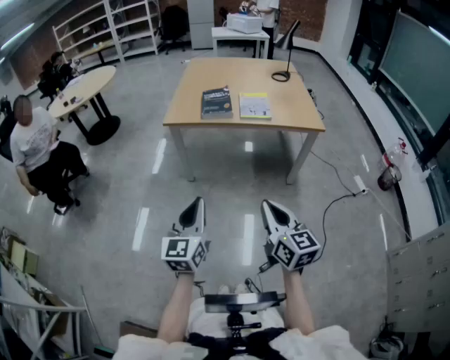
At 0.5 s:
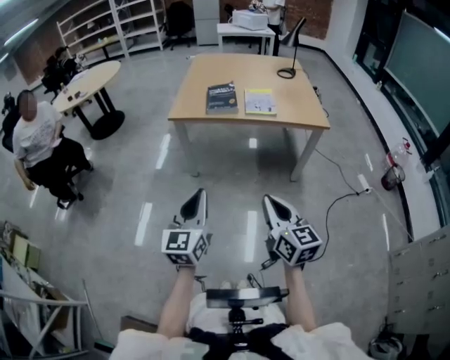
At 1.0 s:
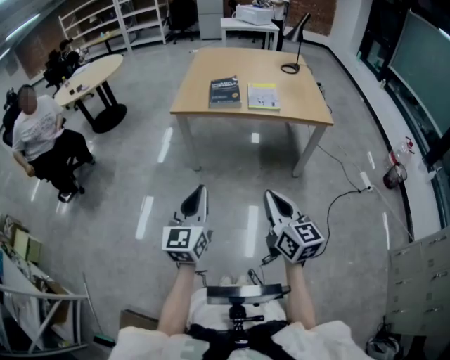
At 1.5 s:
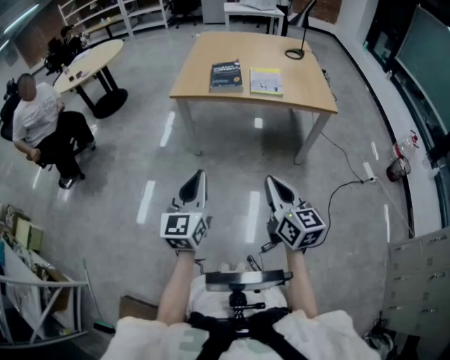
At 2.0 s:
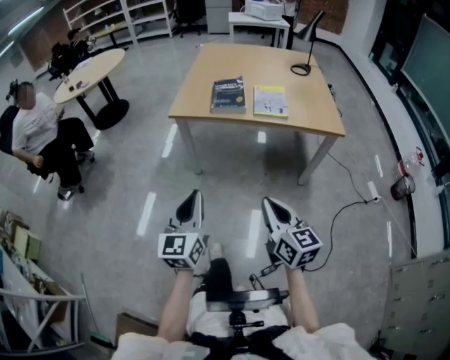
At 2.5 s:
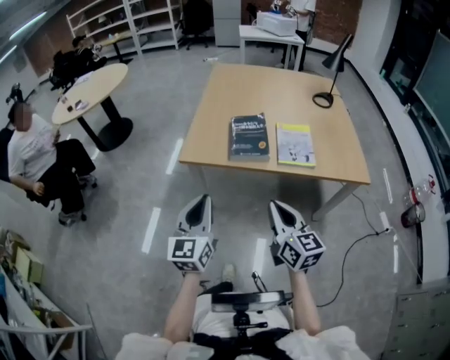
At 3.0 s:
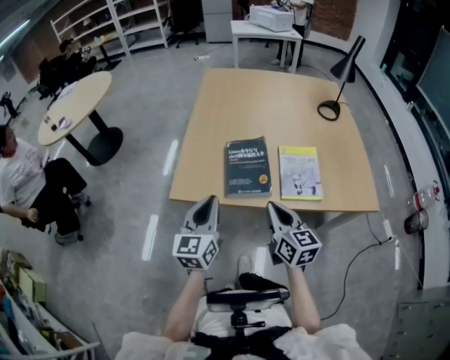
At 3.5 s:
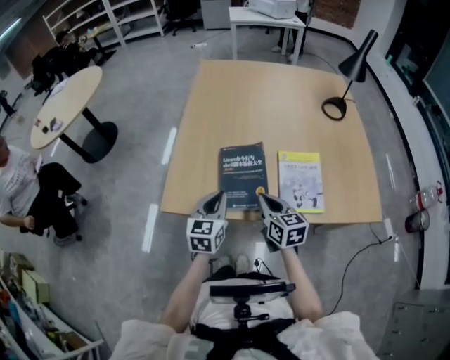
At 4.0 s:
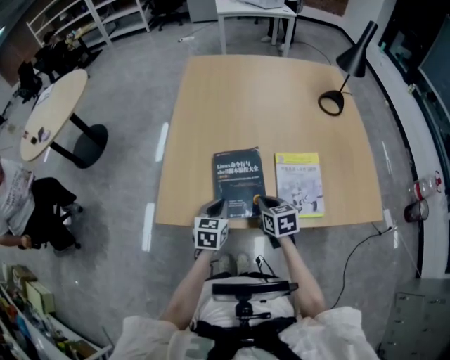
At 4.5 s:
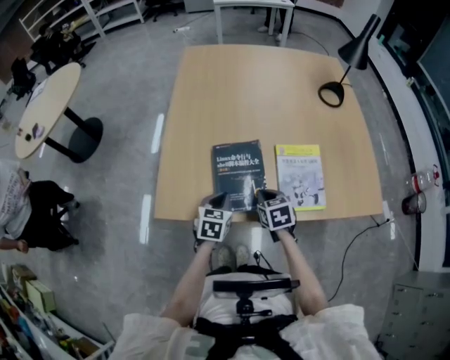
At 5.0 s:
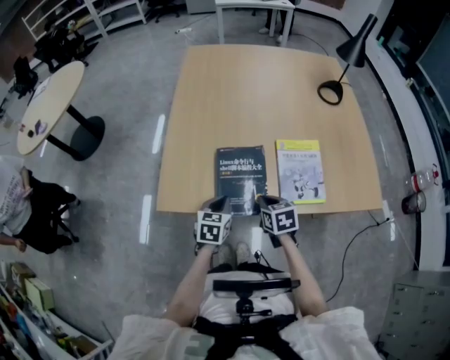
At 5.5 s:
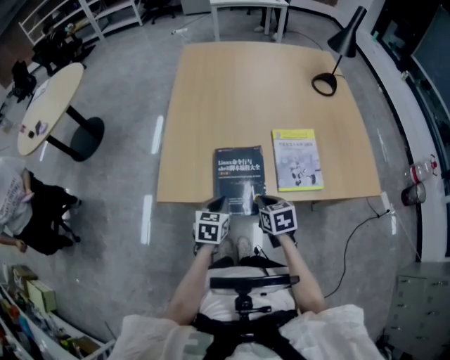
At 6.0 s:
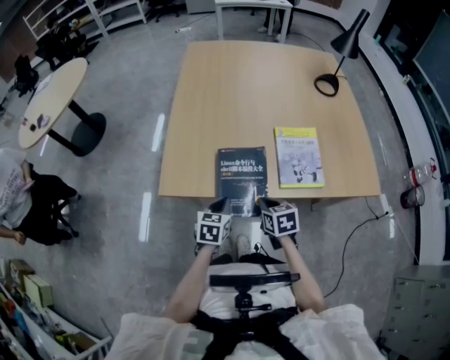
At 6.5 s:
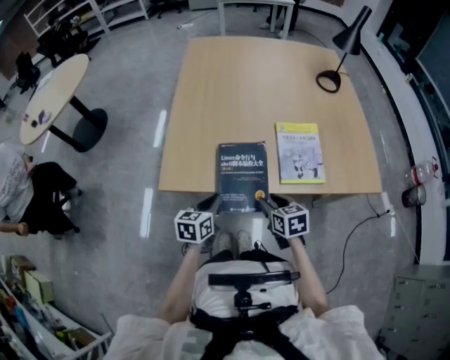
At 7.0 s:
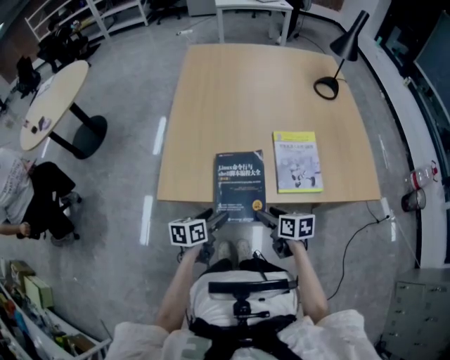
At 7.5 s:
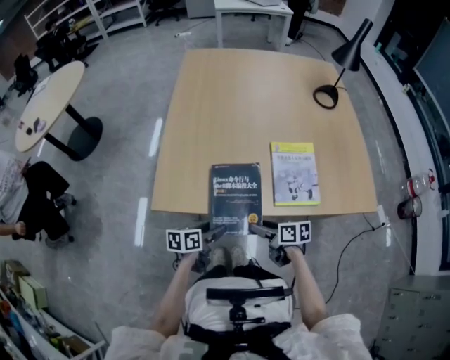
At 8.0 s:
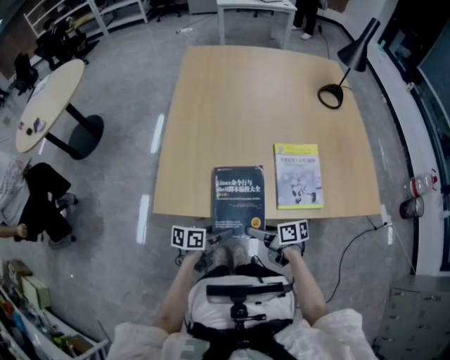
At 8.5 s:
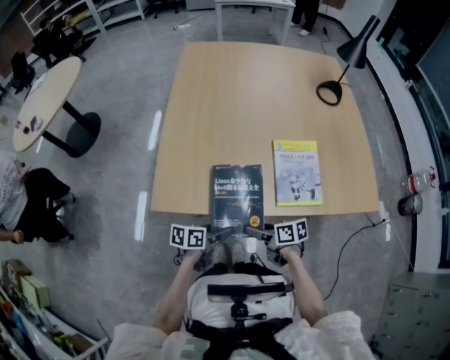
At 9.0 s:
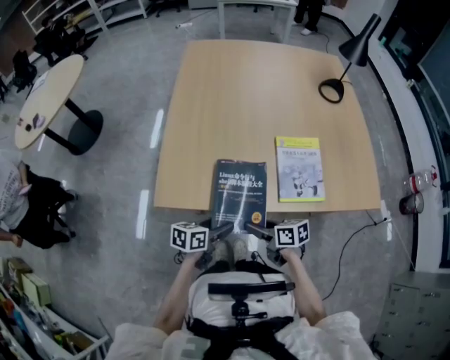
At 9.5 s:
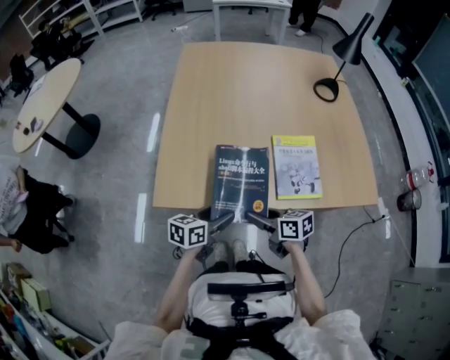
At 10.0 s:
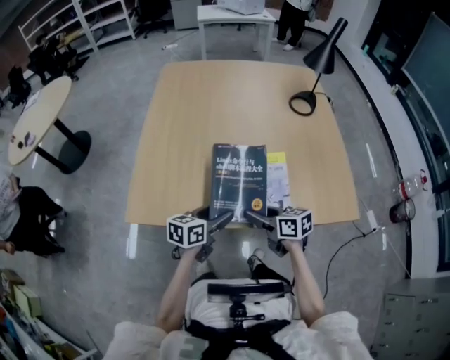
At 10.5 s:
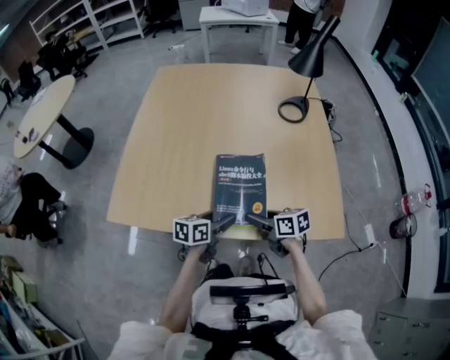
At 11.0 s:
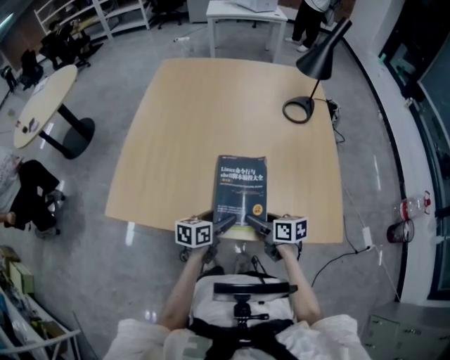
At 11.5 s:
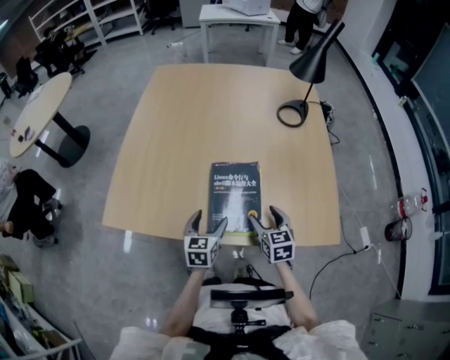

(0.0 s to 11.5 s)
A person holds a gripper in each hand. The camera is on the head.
0.0 s - 2.0 s: Both grippers travel together forward, roughly 10 cm.
2.0 s - 4.0 s: Both grippers are carried forward, roughly 60 cm. The right gripper angles its fingers downward, by approximately 30 degrees; the left gripper tips its fingers downward by roughly 30 degrees.
4.0 s - 6.0 s: Both grippers travel together backward, about 10 cm.
6.0 s - 7.5 s: The right gripper turns by about 40 degrees, and opens its fingers; the left gripper turns by approximately 40 degrees, and opens up.
7.5 s - 9.5 s: The grippers both shift upward by some 5 cm.
9.5 s - 11.5 s: The left gripper travels to the right and forward by some 20 cm, and rotates roughly 40 degrees. The right gripper heads to the right, covering about 30 cm, and changes its angle by roughly 40 degrees.

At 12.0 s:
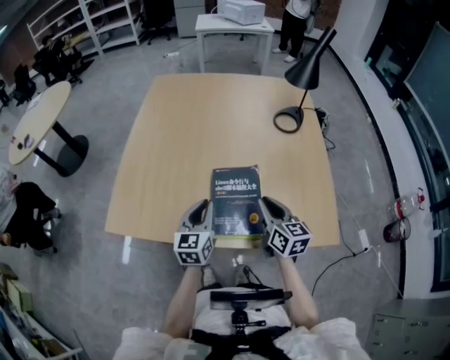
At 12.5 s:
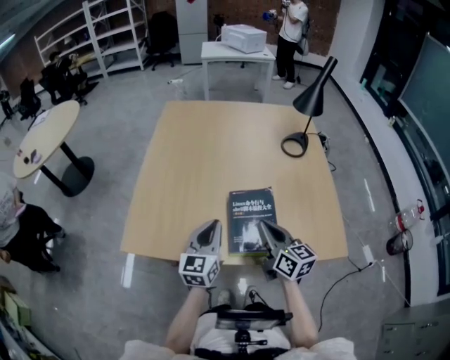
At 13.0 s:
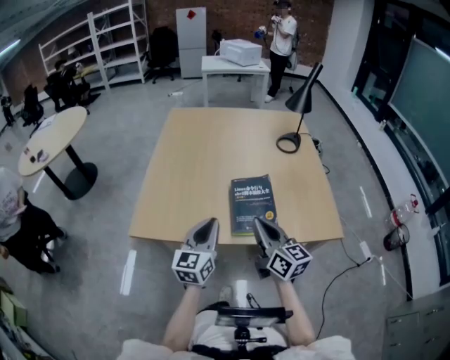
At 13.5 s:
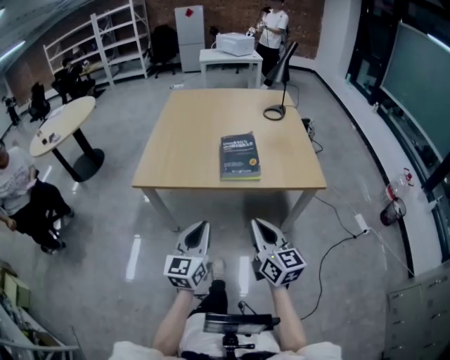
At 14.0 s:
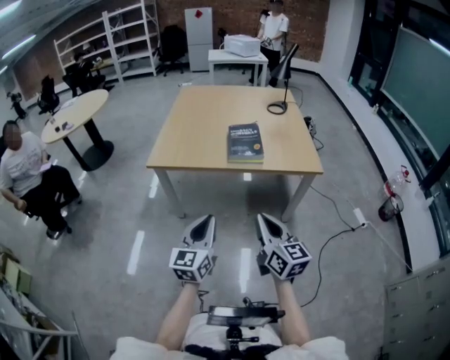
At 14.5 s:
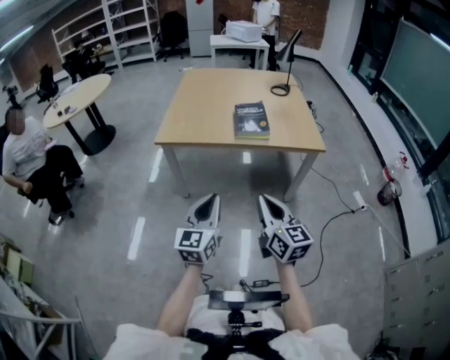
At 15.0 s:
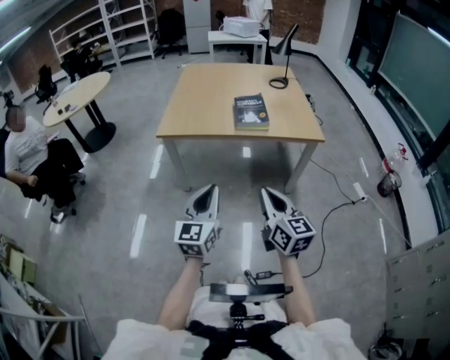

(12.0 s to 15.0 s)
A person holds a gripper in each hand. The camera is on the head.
12.0 s - 13.5 s: Both grippers are carried backward, roughly 40 cm.
13.5 s - 15.0 s: Both grippers move backward, roughly 20 cm.

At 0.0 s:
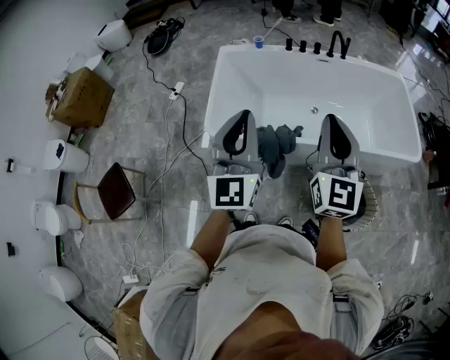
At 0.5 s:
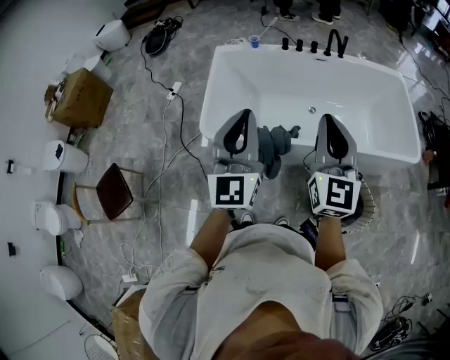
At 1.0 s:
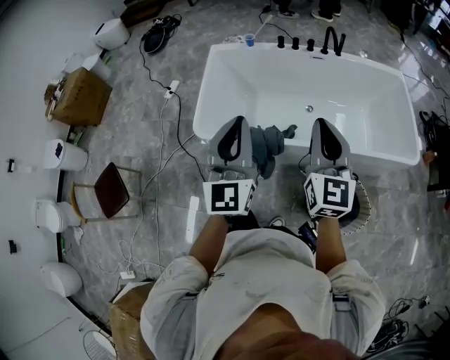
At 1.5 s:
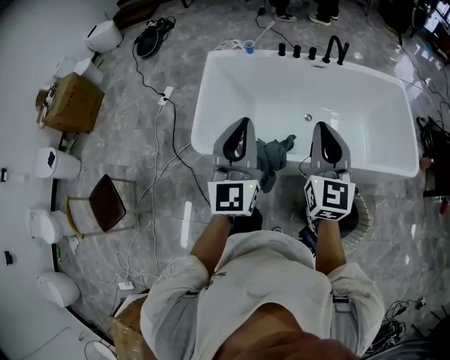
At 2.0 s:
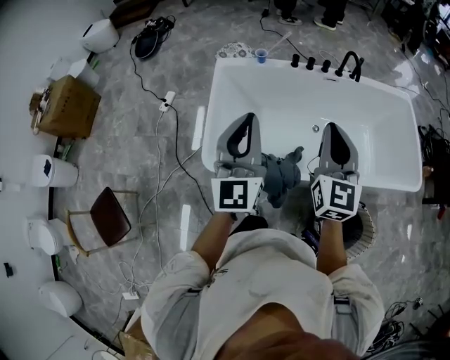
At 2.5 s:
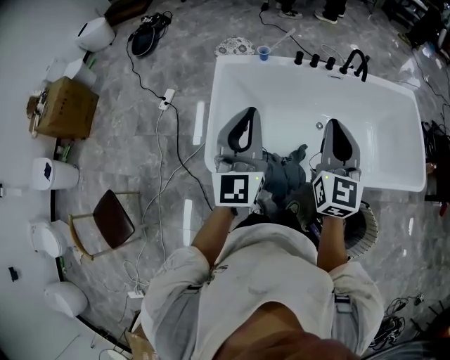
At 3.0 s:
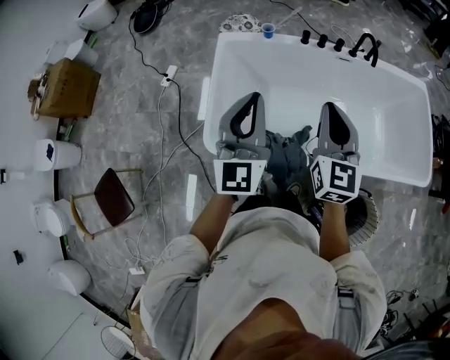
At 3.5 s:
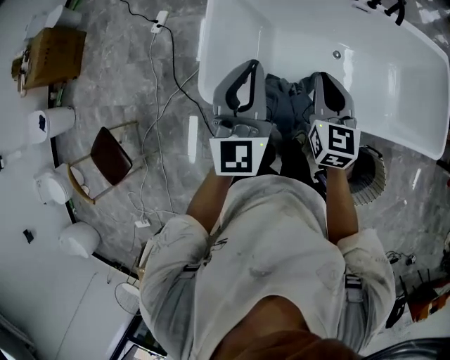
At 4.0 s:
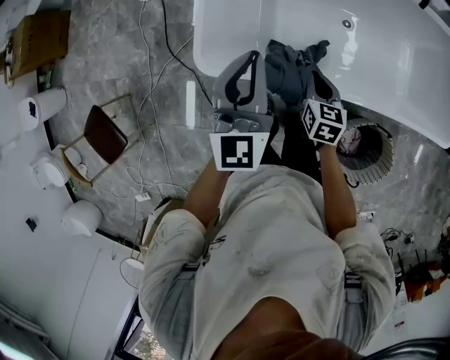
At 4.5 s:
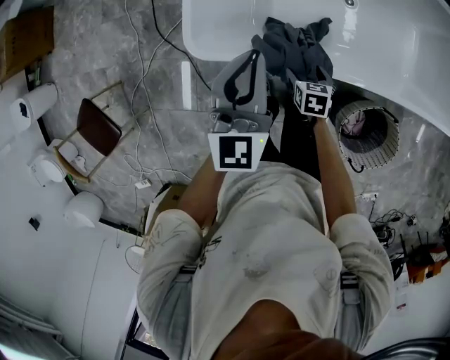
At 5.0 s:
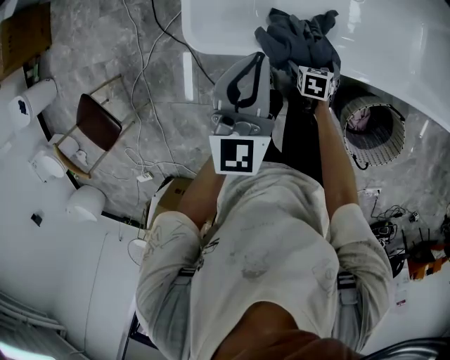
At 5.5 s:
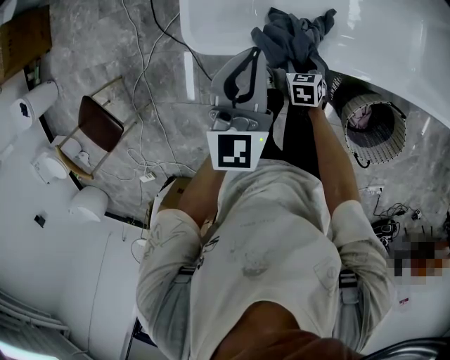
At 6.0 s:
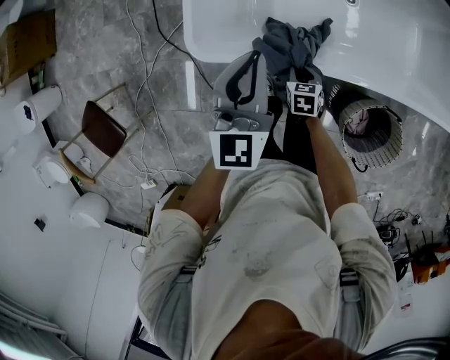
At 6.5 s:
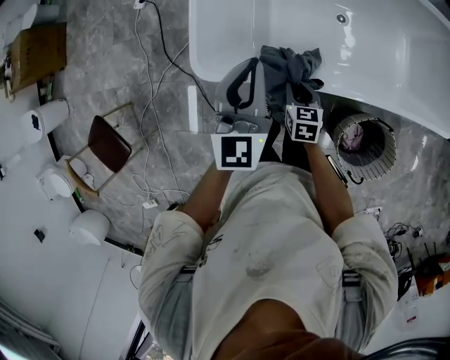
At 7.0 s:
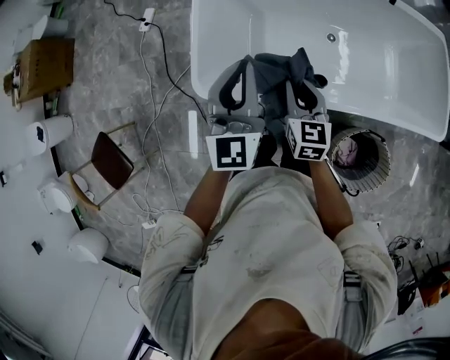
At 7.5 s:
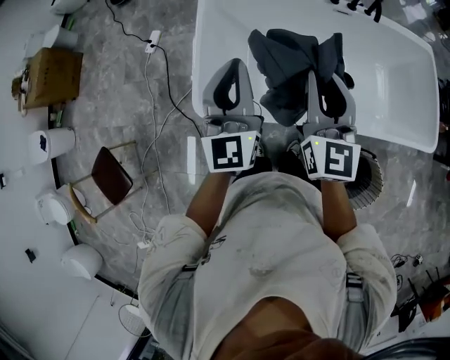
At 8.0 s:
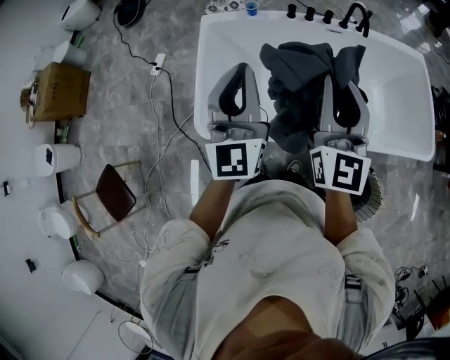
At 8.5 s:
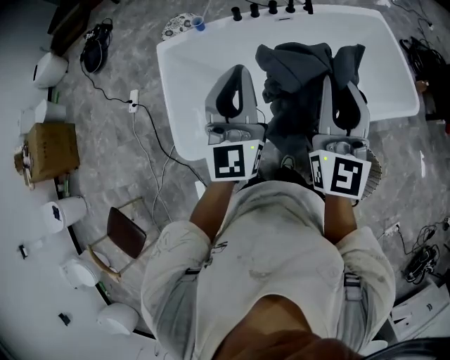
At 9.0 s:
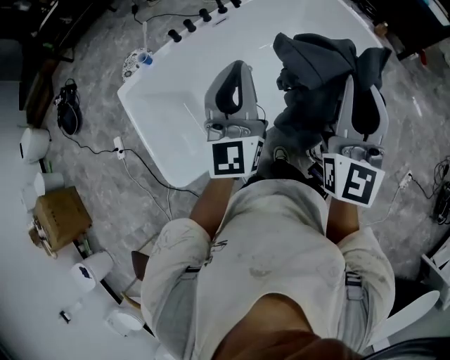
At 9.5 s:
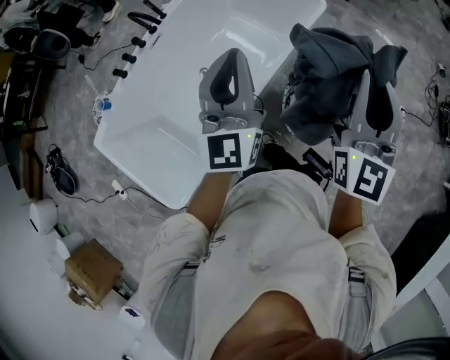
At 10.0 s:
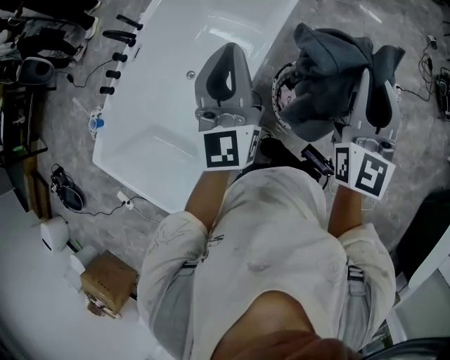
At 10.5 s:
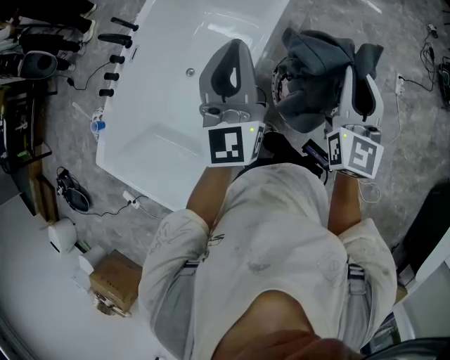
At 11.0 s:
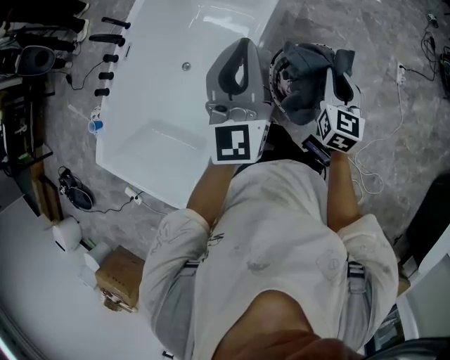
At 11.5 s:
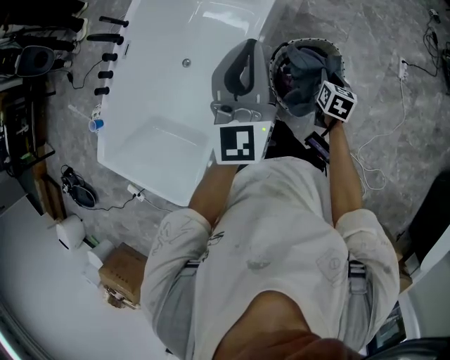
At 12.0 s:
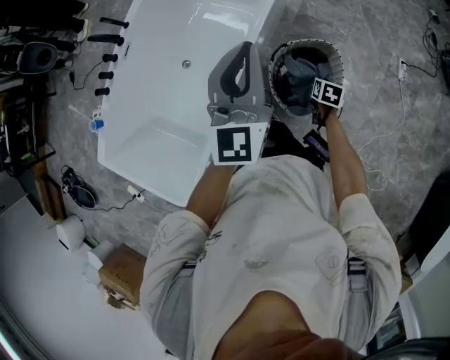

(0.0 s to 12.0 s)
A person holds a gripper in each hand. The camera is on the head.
0.0 s - 2.0 s: The two grippers go about 20 cm forward.
2.0 s - 4.0 s: The left gripper goes some 20 cm downward; the right gripper travels downward by roughly 40 cm, and tips its fingers downward by approximately 40 degrees.
4.0 s - 6.0 s: The left gripper travels downward by roughly 5 cm. Meanwhile the right gripper is displaced downward by some 15 cm, turns by roughly 20 degrees, and opens and closes again.
6.0 s - 8.0 s: The left gripper heads upward, covering some 25 cm, and rotates about 30 degrees. The right gripper travels upward by about 60 cm, and tips its fingers upward by approximately 70 degrees.
8.0 s - 10.0 s: The two grippers travel together, roughly 50 cm. The right gripper rotates some 70 degrees. The left gripper swivels approximately 60 degrees.
10.0 s - 12.0 s: The right gripper heads downward, covering about 50 cm, and tilts its fingers some 70 degrees downward. The left gripper goes roughly 5 cm to the right.
